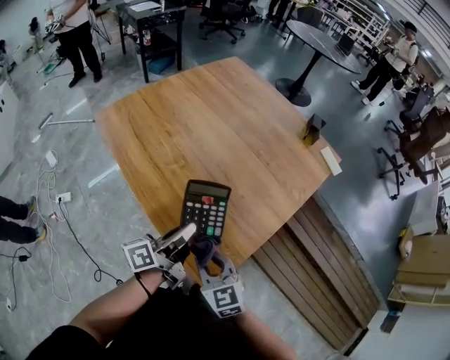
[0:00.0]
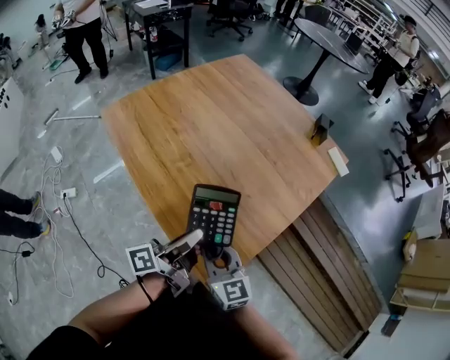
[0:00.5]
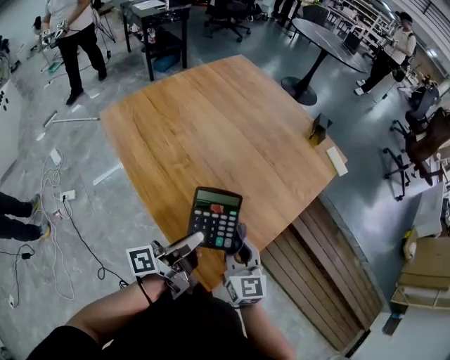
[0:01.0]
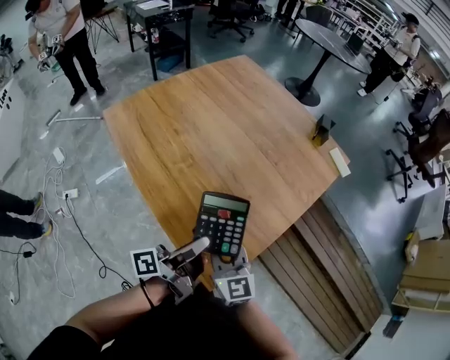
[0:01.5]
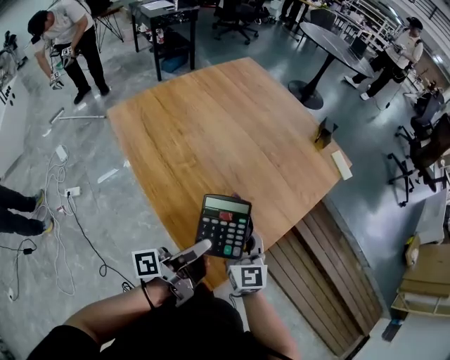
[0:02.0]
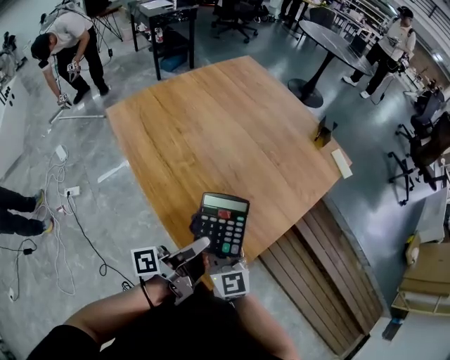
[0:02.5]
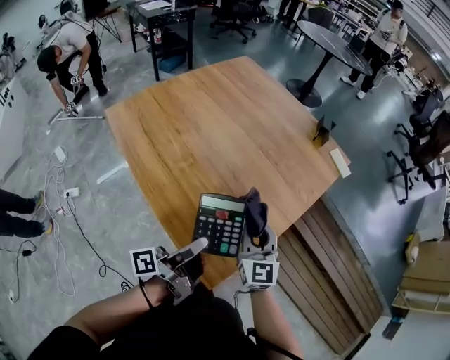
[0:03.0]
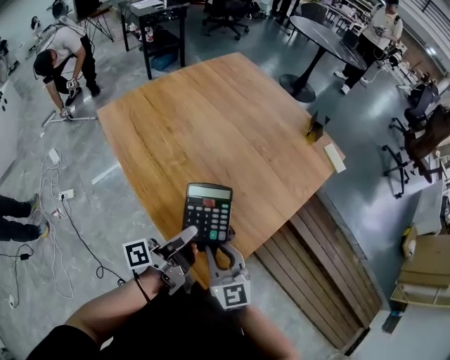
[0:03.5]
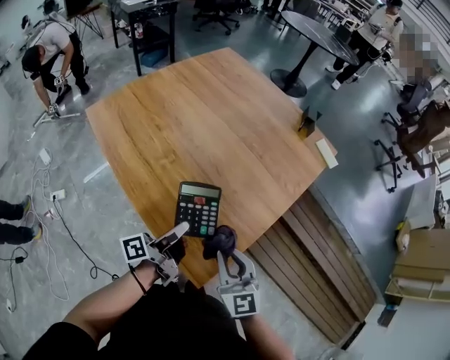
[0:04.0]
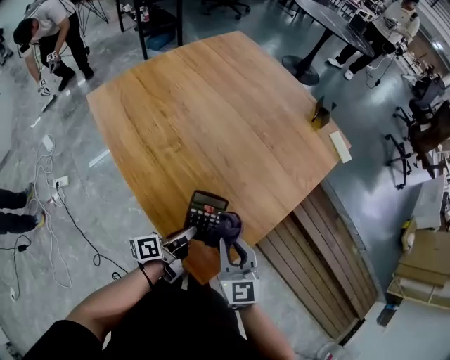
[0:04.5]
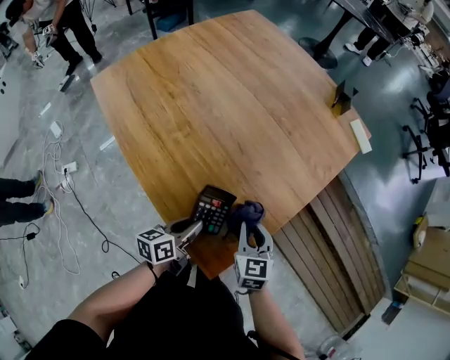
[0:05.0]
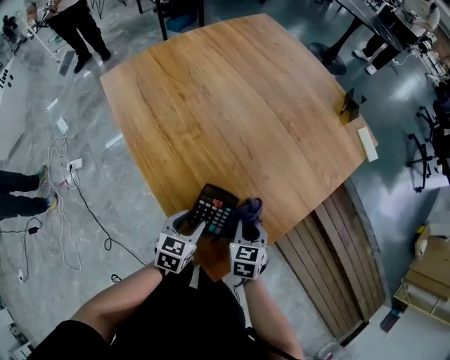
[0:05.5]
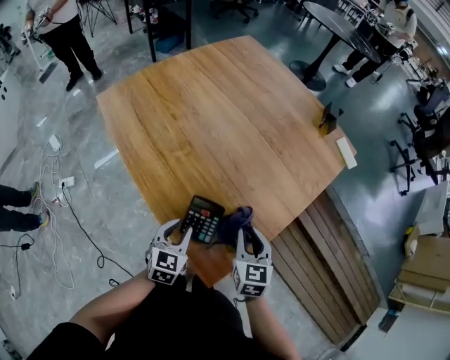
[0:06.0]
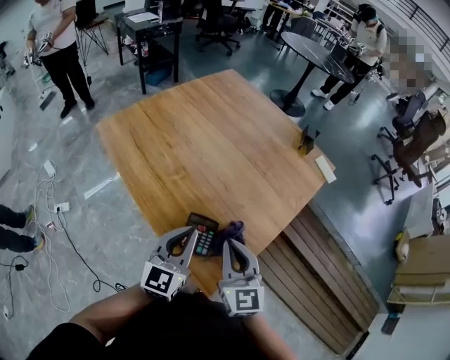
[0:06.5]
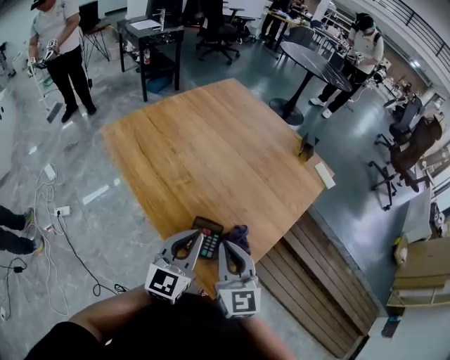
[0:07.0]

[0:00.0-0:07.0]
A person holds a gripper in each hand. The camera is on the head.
0:00.0 to 0:02.0: The right gripper goes about 10 cm forward and to the right, and turns by some 20 degrees. The left gripper changes place by roughly 5 cm, and swivels some 20 degrees.
0:02.0 to 0:03.5: The right gripper swings left and right, roughly 10 cm each way, with 2 reversals.
0:03.5 to 0:05.0: The right gripper goes roughly 20 cm downward, to the right and forward, and rotates approximately 30 degrees; the left gripper shifts roughly 20 cm downward, and angles its fingers downward, by roughly 30 degrees.
0:05.0 to 0:07.0: The right gripper goes about 25 cm upward and to the left, and swivels approximately 30 degrees. Meanwhile the left gripper goes about 25 cm upward, rolls clockwise, seen from behind, by some 40 degrees, and opens, then closes once more.

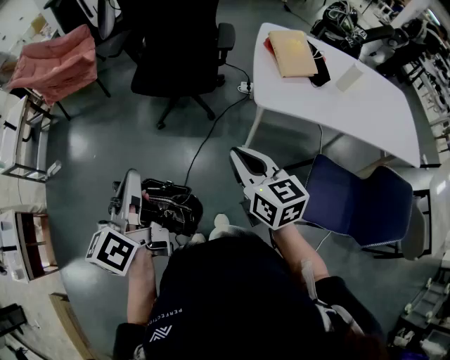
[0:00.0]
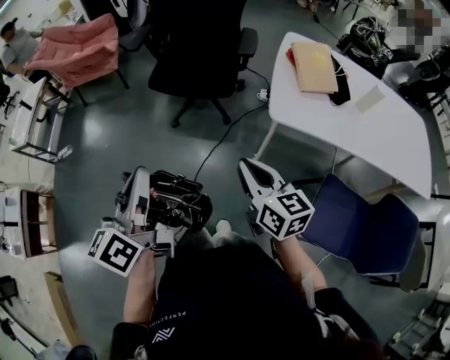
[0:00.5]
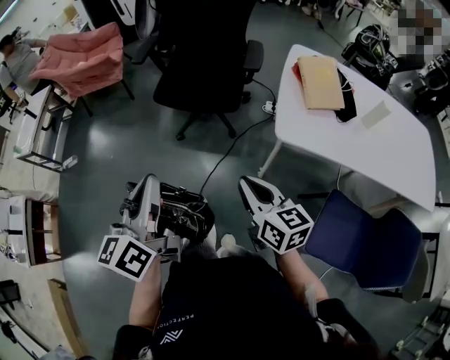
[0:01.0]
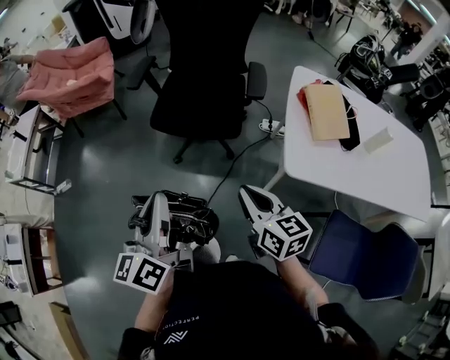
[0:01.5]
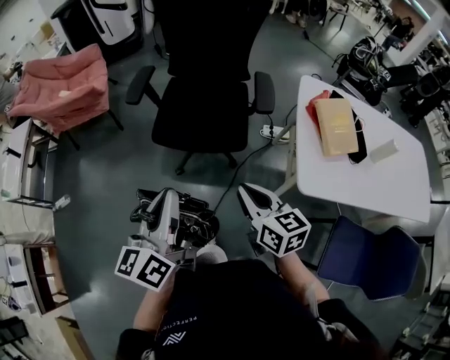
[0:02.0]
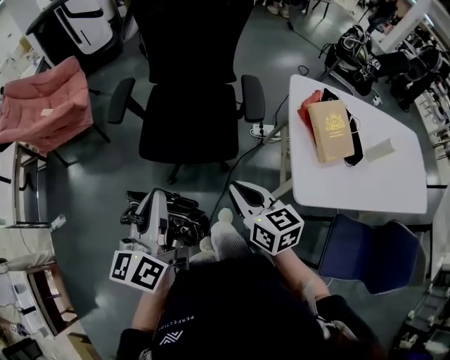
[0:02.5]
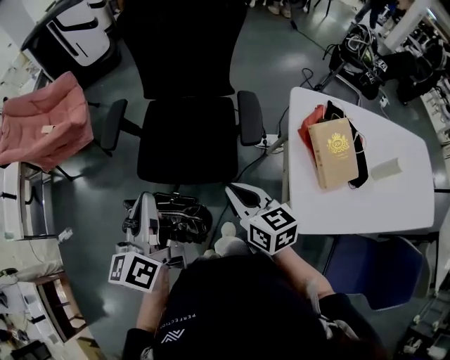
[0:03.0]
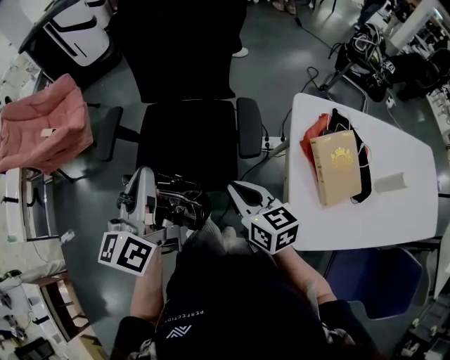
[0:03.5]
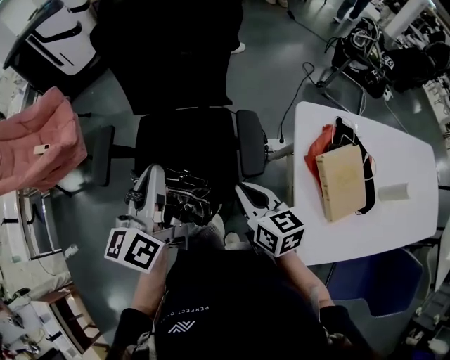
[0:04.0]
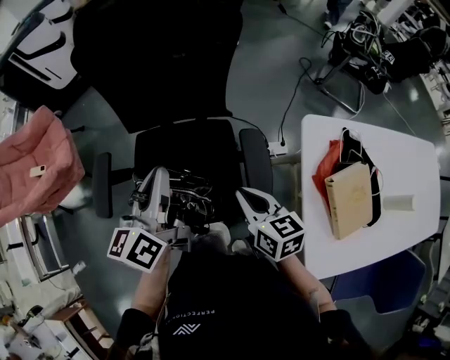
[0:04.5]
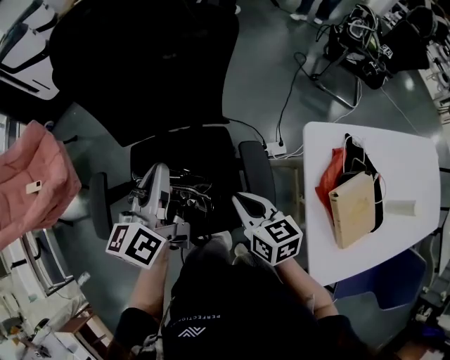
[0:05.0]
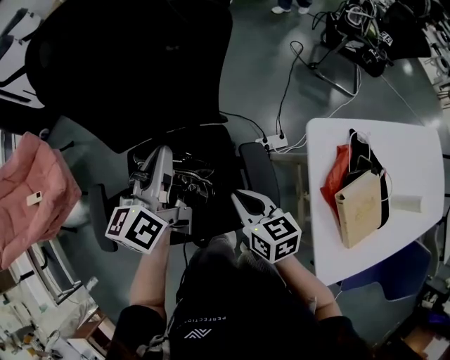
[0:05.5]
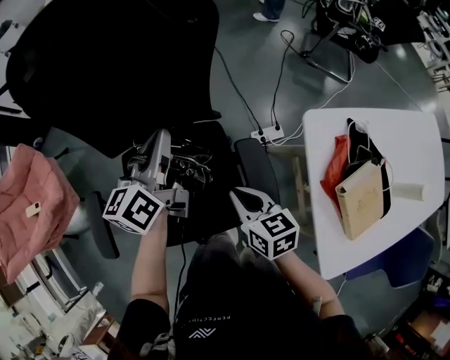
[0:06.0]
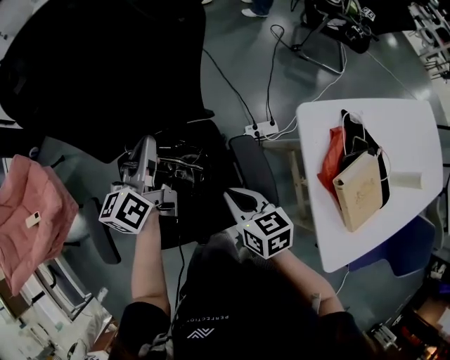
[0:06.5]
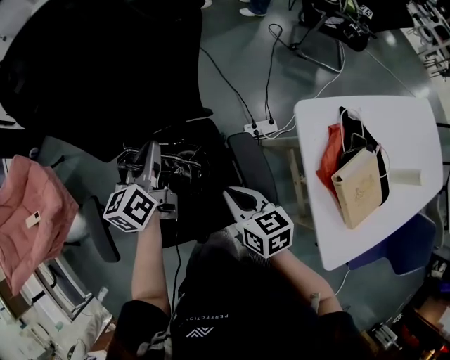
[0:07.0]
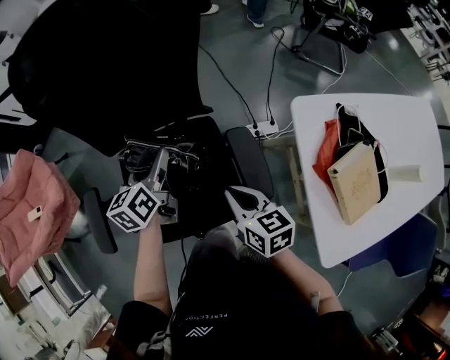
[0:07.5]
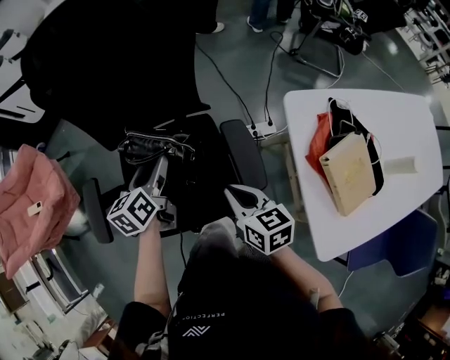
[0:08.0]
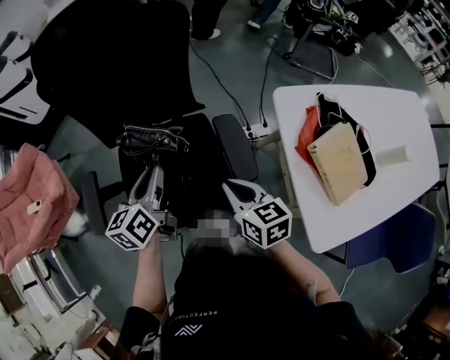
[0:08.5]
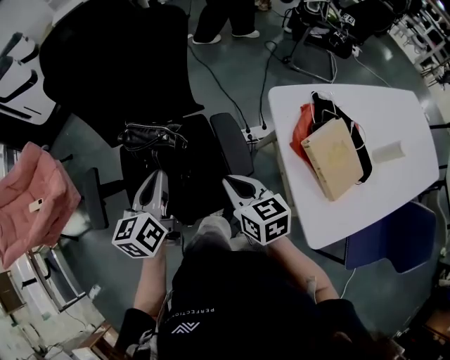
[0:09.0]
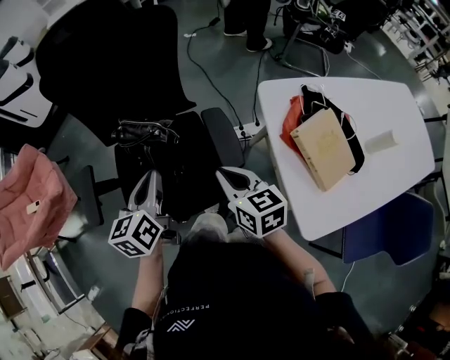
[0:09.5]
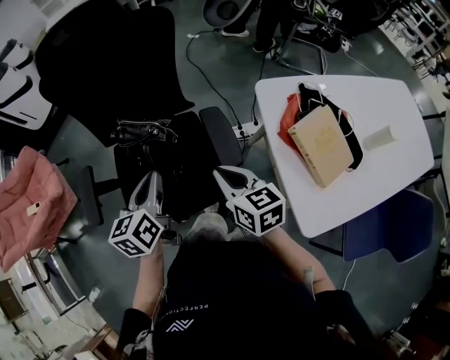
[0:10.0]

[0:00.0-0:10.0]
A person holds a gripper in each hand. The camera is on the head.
0:00.0 to 0:02.0: Both grippers travel together forward, approximately 25 cm.
0:02.0 to 0:04.0: The left gripper moves forward, approximately 35 cm; the right gripper is displaced forward and to the right by about 30 cm.
0:04.0 to 0:06.0: The left gripper is displaced forward by roughly 30 cm, while the right gripper heads forward and downward, covering some 15 cm.
0:06.0 to 0:08.0: The right gripper heads backward, covering approximately 5 cm. Meanwhile the left gripper goes roughly 15 cm backward and downward, changes its angle by about 20 degrees, and opens.
0:08.0 to 0:10.0: The right gripper heads upward, covering roughly 5 cm; the left gripper heads backward and upward, covering roughly 15 cm, and closes up.

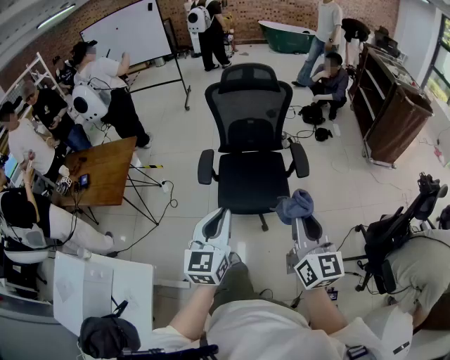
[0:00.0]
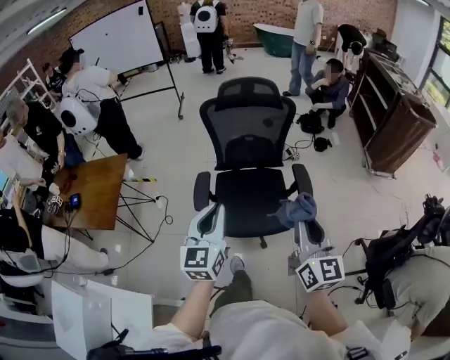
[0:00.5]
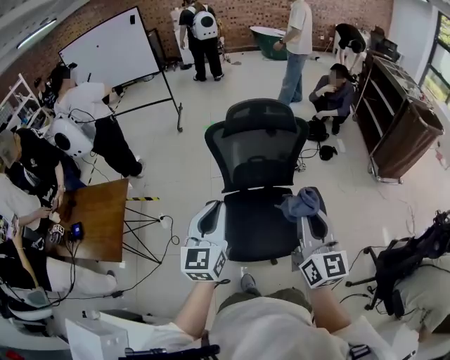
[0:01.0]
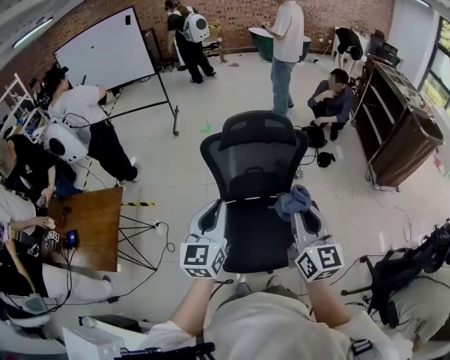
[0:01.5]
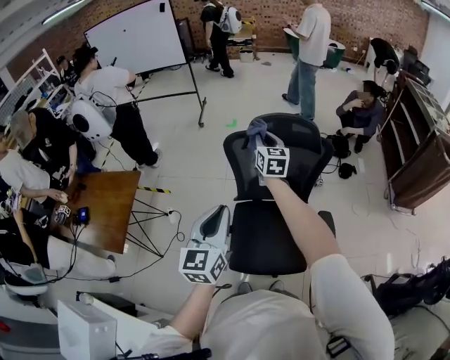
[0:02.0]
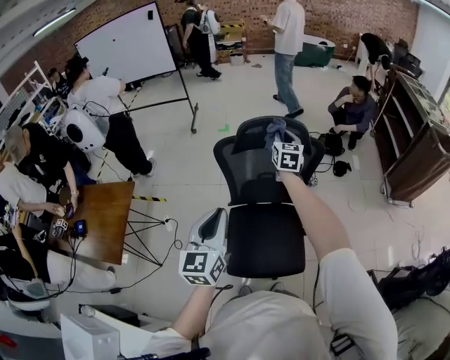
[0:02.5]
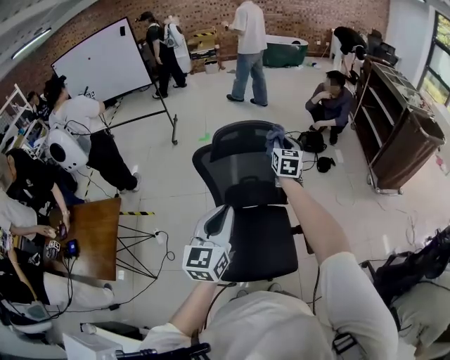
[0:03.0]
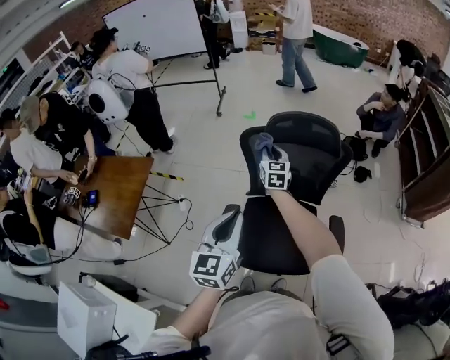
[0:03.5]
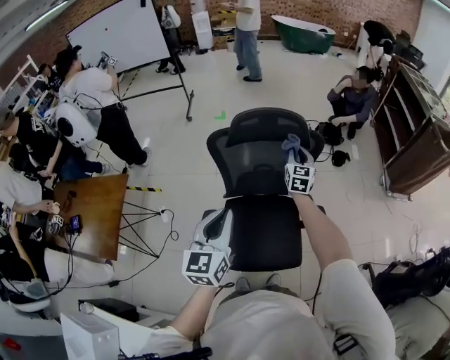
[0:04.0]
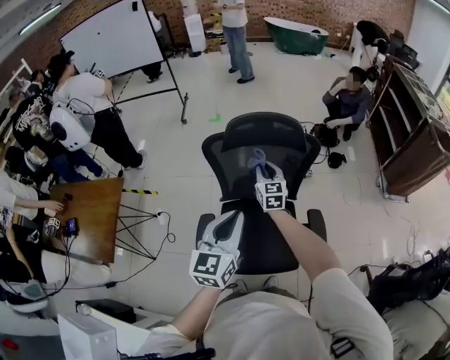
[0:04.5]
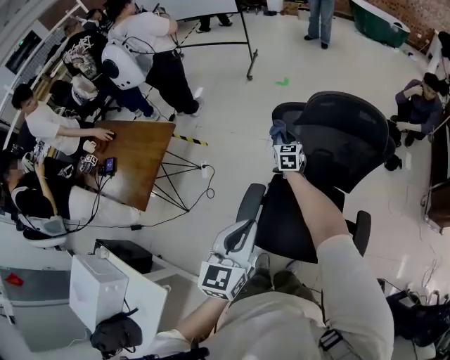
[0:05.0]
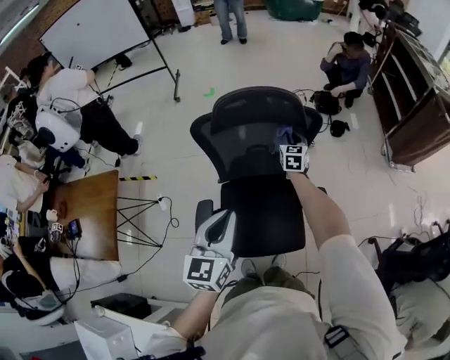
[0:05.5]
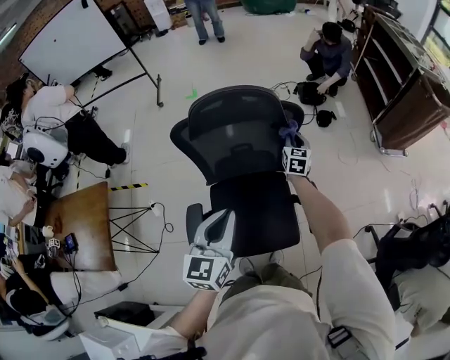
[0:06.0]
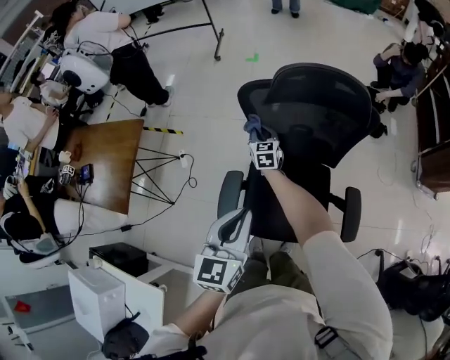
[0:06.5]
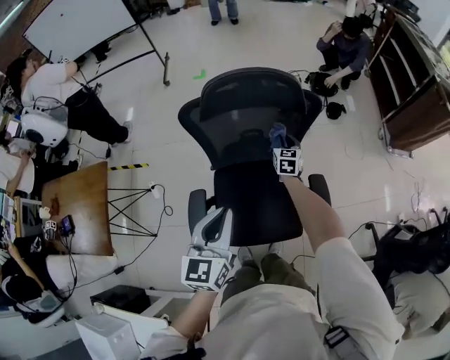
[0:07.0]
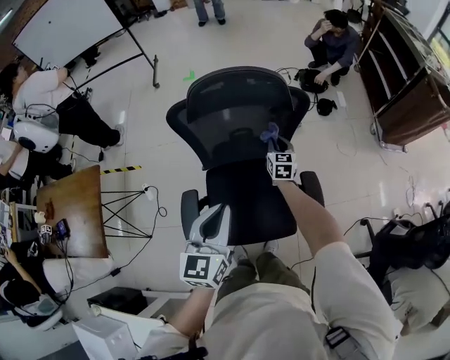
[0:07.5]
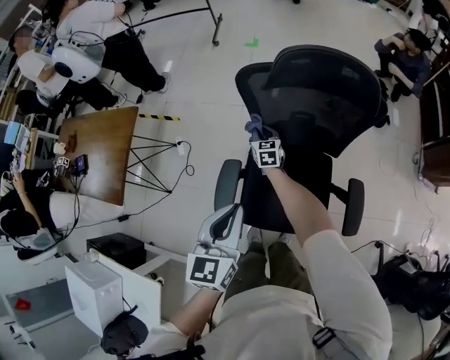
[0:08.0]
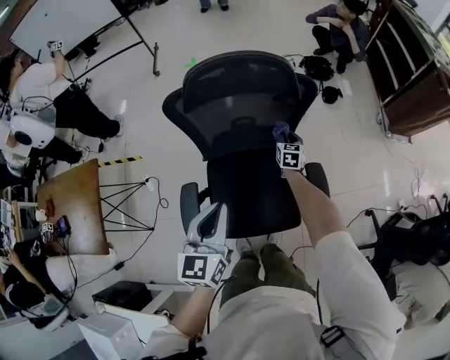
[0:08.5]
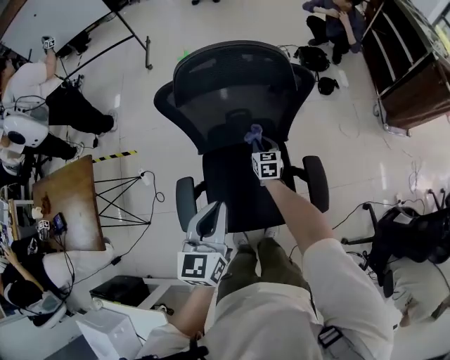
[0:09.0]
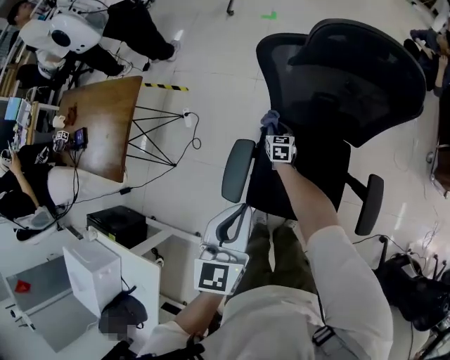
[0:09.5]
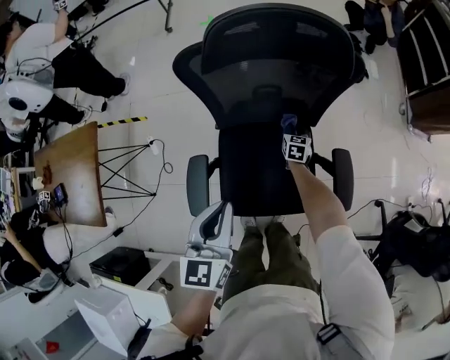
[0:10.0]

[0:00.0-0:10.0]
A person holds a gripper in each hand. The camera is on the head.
0:00.0 to 0:02.0: The pair of grippers is taken forward, some 60 cm. The right gripper turns by some 20 degrees.
0:02.0 to 0:04.0: The right gripper goes left and right, some 15 cm each way, reversing 2 times, while the left gripper goes some 5 cm forward.
0:04.0 to 0:06.0: The right gripper is displaced downward and forward by roughly 15 cm, and moves about 25 cm to the left and comes back. The left gripper moves left and right over approximately 10 cm, changing direction 2 times.
0:06.0 to 0:08.0: The right gripper changes place by approximately 40 cm, and rotates roughly 30 degrees. Meanwhile the left gripper moves about 15 cm.
0:08.0 to 0:10.0: The right gripper moves left and right over about 35 cm, changing direction 2 times, and rotates about 30 degrees. The left gripper swings left and right, some 15 cm each way, with 2 reversals.
